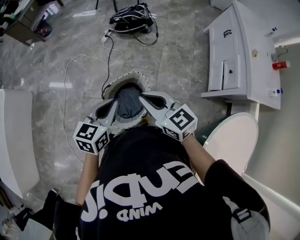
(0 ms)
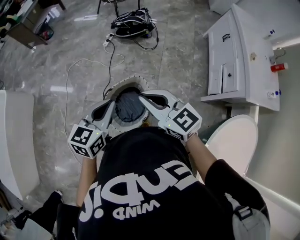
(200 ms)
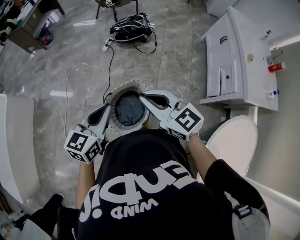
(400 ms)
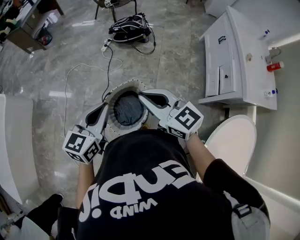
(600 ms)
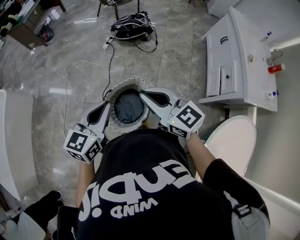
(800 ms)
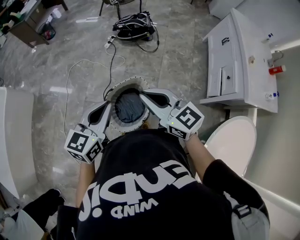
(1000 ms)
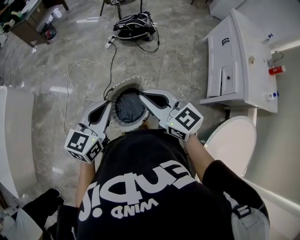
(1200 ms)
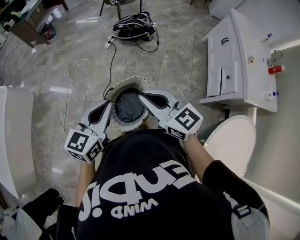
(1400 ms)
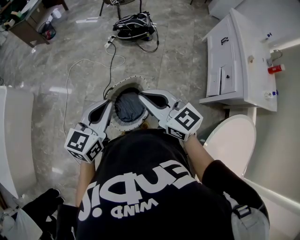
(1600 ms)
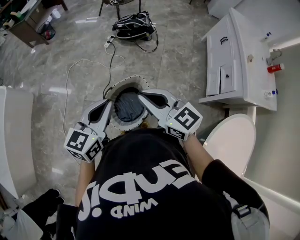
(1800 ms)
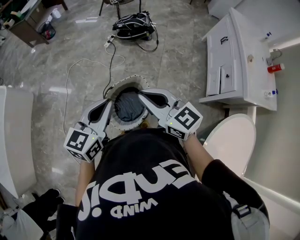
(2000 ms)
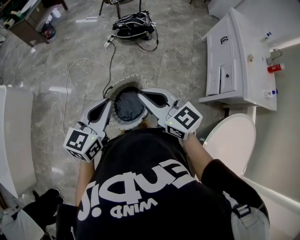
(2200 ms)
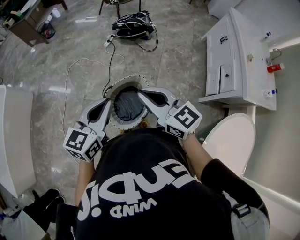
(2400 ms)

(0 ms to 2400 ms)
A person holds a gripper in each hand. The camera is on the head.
0 ms - 1200 ms: The two grippers go about 5 cm upward.
1200 ms - 2400 ms: Both grippers stay about where they are.

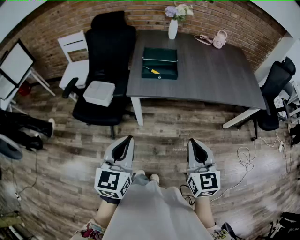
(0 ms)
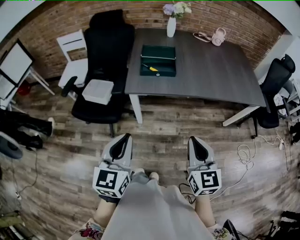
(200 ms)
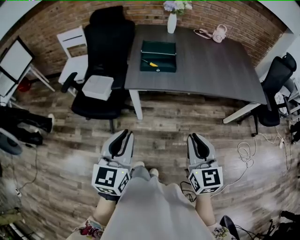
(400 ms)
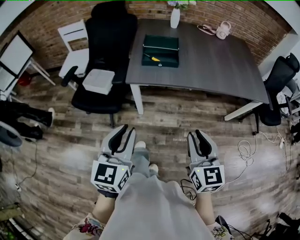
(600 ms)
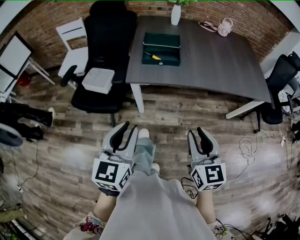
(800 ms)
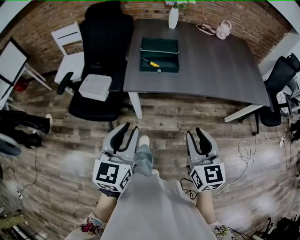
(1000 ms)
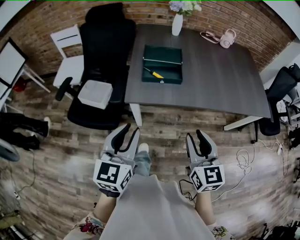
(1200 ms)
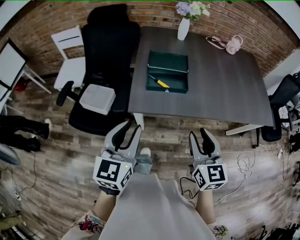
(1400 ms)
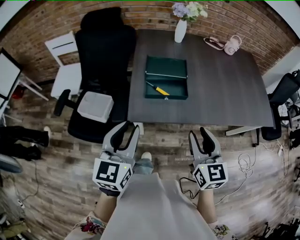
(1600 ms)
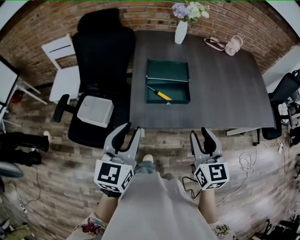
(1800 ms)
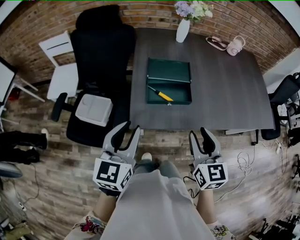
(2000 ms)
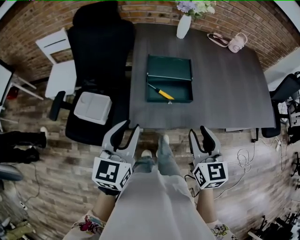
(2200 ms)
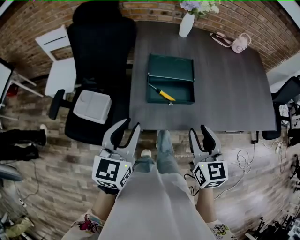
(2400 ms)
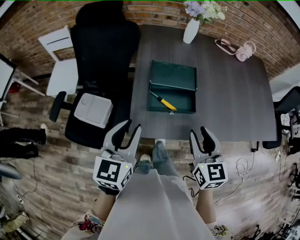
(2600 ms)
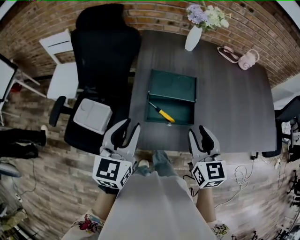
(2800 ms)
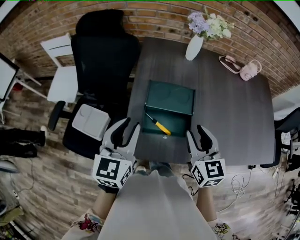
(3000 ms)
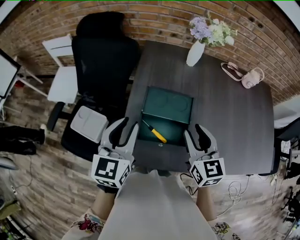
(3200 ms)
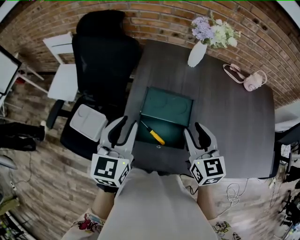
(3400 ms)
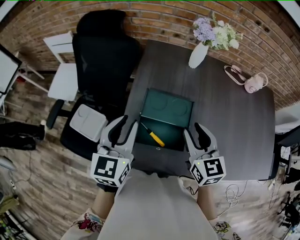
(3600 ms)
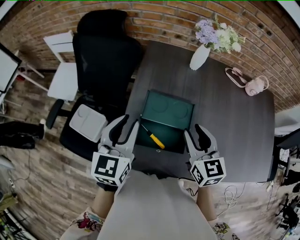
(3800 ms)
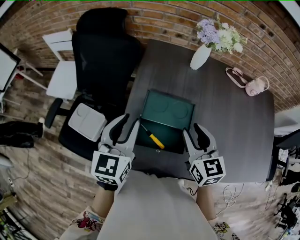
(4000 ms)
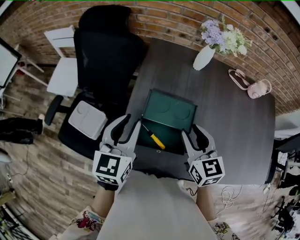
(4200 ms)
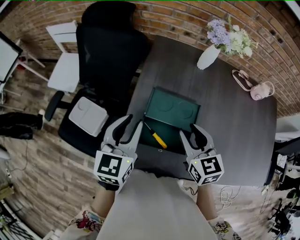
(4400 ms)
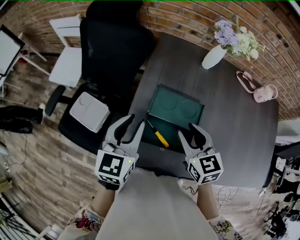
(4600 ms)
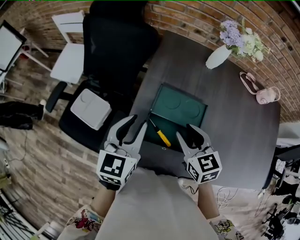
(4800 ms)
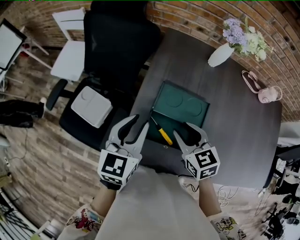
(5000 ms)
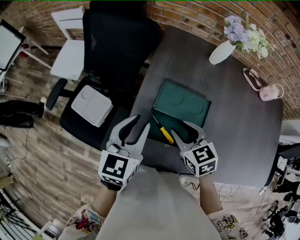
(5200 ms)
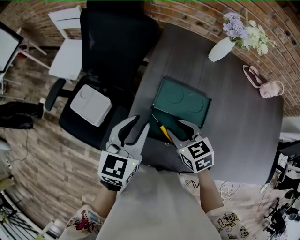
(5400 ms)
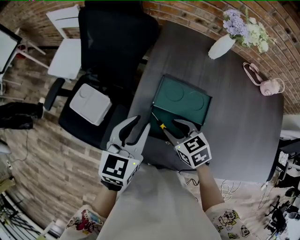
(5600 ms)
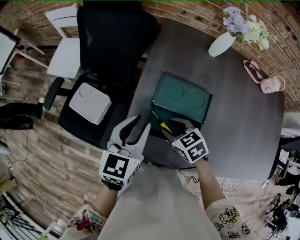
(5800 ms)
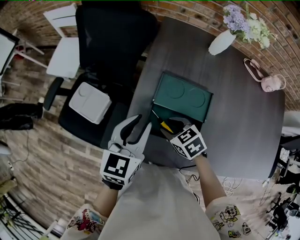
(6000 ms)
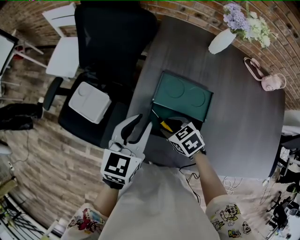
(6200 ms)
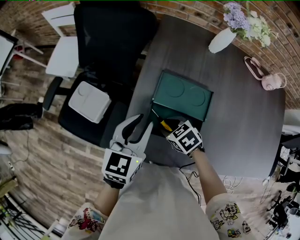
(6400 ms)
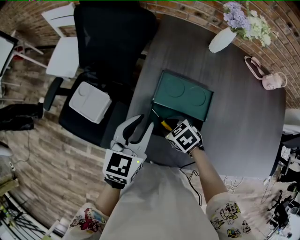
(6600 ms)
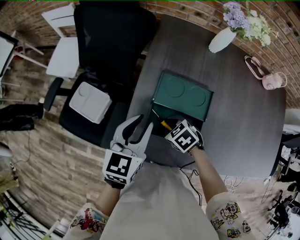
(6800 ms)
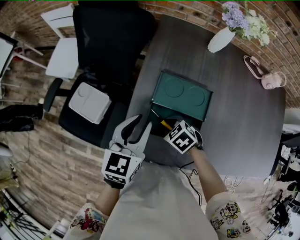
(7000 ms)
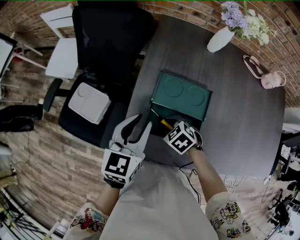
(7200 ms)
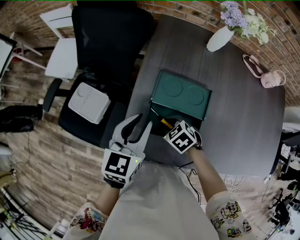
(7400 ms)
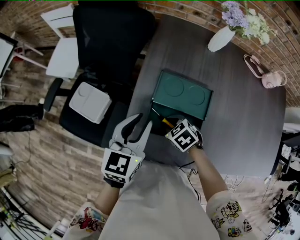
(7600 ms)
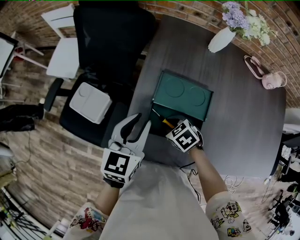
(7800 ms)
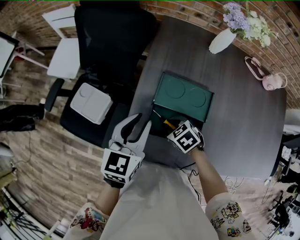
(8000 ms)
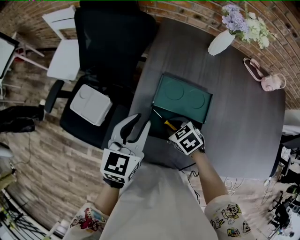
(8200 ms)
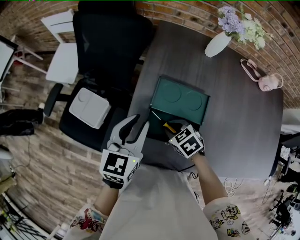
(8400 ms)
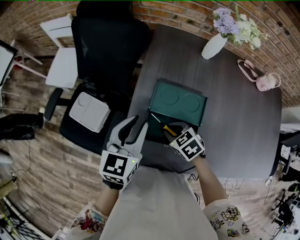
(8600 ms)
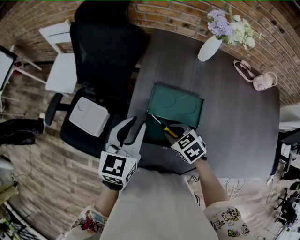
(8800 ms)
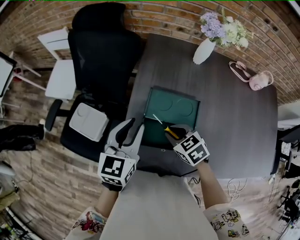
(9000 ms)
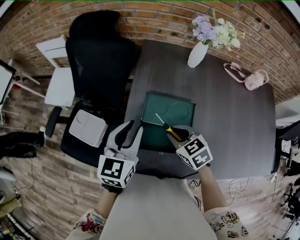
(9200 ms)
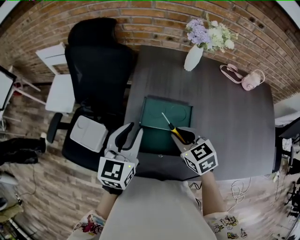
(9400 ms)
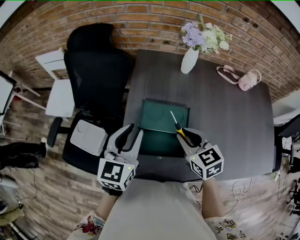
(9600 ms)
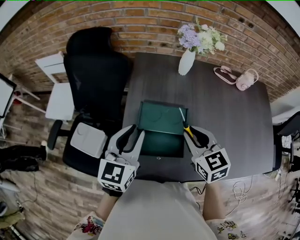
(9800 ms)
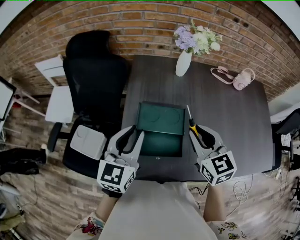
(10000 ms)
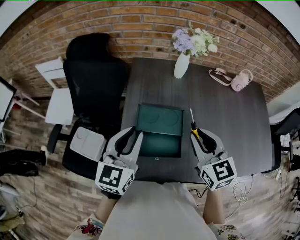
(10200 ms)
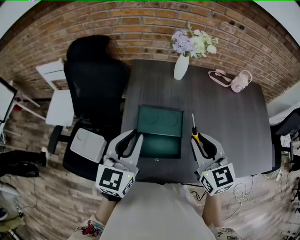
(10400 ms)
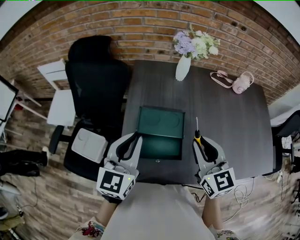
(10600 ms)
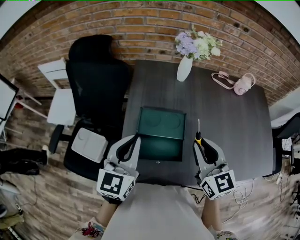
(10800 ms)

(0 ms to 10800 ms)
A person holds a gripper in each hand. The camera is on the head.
0 ms - 1600 ms: The grippers both shift forward by roughly 25 cm. The left gripper opens up. The right gripper opens.
1600 ms - 3000 ms: Both grippers travel together forward, roughly 20 cm.
3000 ms - 4600 ms: The two grippers go roughly 10 cm forward. The right gripper swivels about 20 degrees.
4600 ms - 6200 ms: The right gripper heads downward and to the left, covering approximately 20 cm, and swivels approximately 40 degrees; the left gripper changes place by approximately 5 cm.
6200 ms - 7800 ms: The right gripper closes up.
7800 ms - 9200 ms: The right gripper moves upward, about 10 cm, and rotates approximately 20 degrees; the left gripper shifts by roughly 5 cm.
9200 ms - 10800 ms: The right gripper is displaced upward and to the right by about 20 cm, and angles its fingers upward, by about 30 degrees. Meanwhile the left gripper is displaced upward by roughly 5 cm, and closes its fingers.

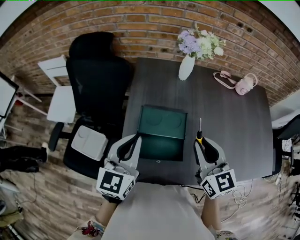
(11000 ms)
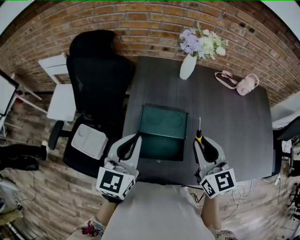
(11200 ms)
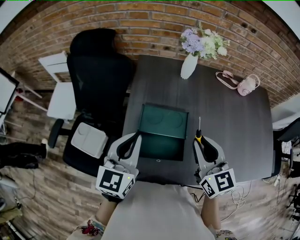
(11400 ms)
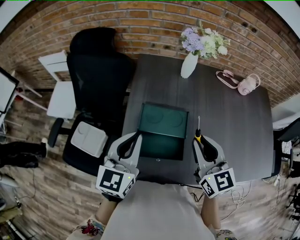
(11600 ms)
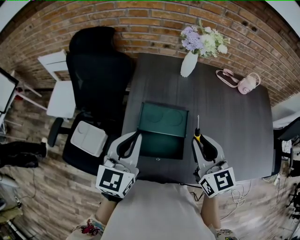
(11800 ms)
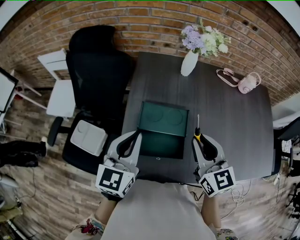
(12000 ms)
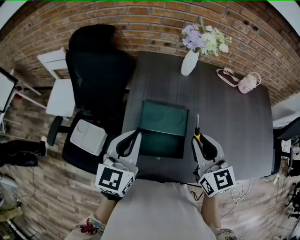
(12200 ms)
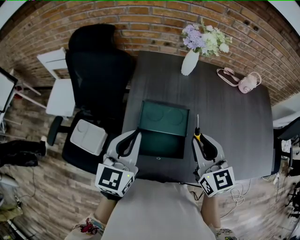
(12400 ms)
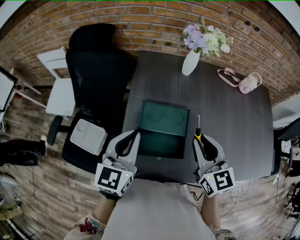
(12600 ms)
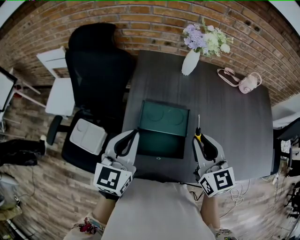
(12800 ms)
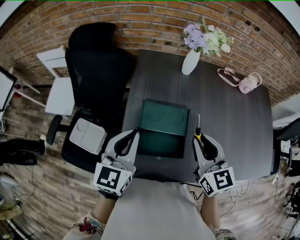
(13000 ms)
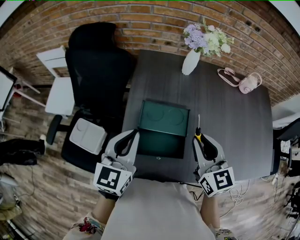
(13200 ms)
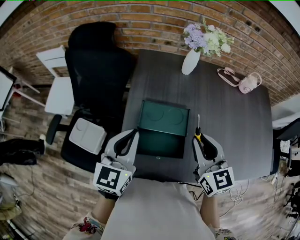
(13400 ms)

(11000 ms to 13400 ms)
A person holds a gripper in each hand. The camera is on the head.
11000 ms - 12200 ms: The grippers make only small movements.
12200 ms - 13400 ms: Both grippers stay put.

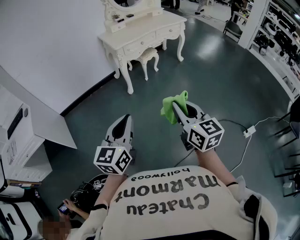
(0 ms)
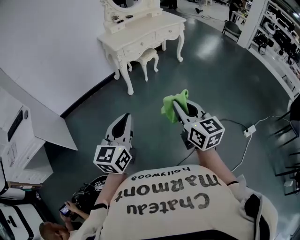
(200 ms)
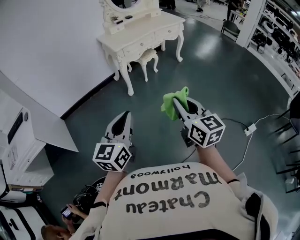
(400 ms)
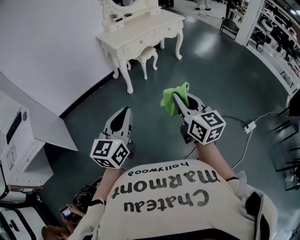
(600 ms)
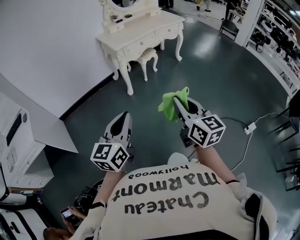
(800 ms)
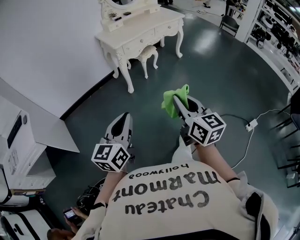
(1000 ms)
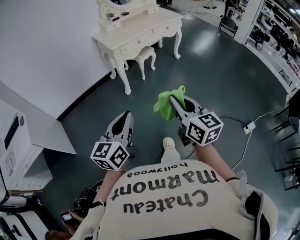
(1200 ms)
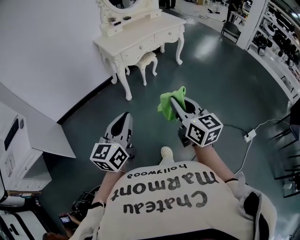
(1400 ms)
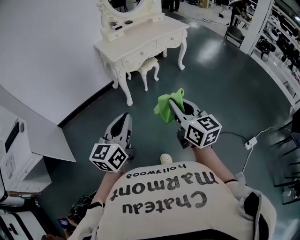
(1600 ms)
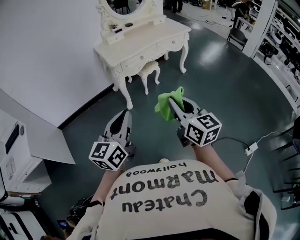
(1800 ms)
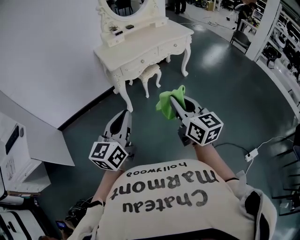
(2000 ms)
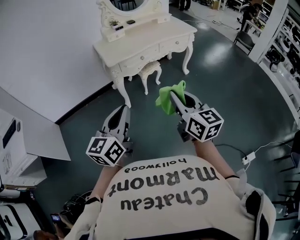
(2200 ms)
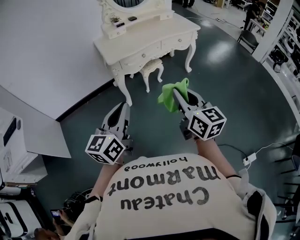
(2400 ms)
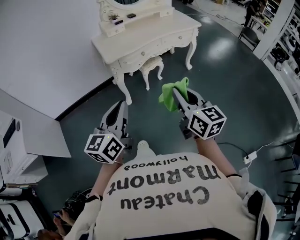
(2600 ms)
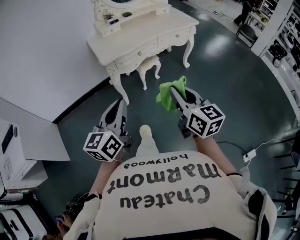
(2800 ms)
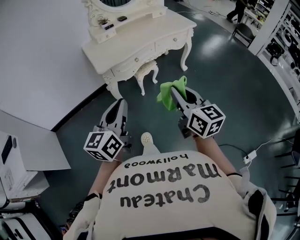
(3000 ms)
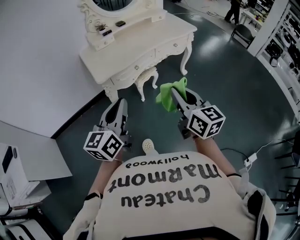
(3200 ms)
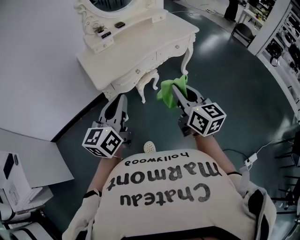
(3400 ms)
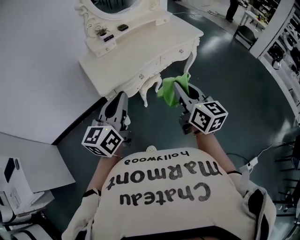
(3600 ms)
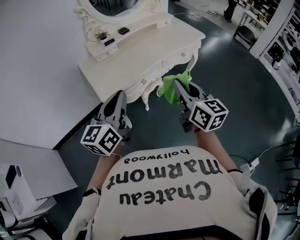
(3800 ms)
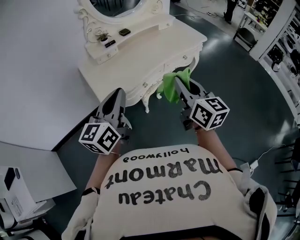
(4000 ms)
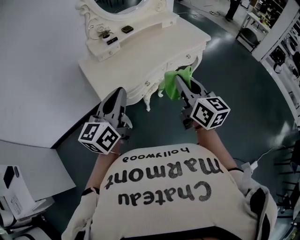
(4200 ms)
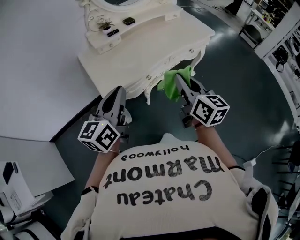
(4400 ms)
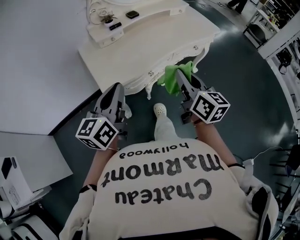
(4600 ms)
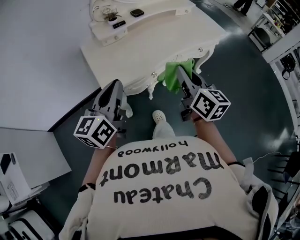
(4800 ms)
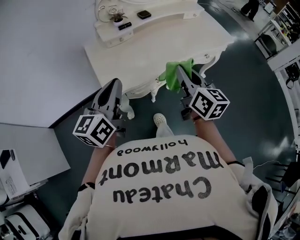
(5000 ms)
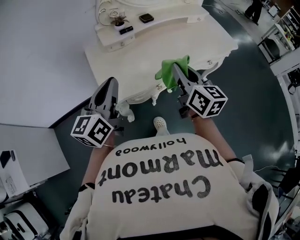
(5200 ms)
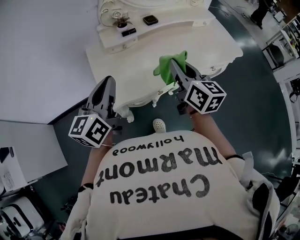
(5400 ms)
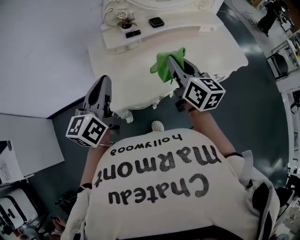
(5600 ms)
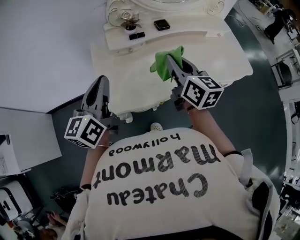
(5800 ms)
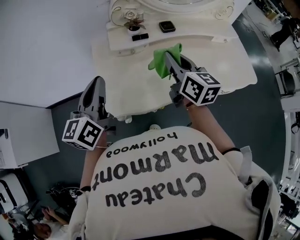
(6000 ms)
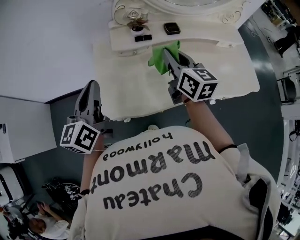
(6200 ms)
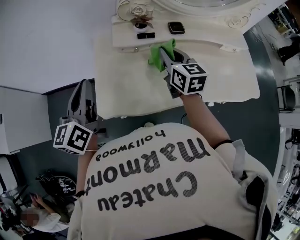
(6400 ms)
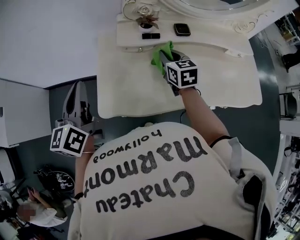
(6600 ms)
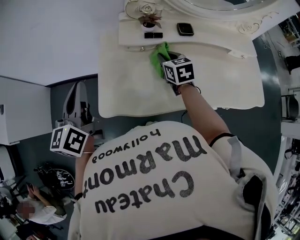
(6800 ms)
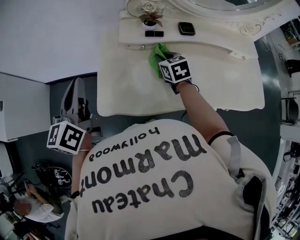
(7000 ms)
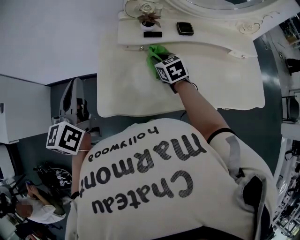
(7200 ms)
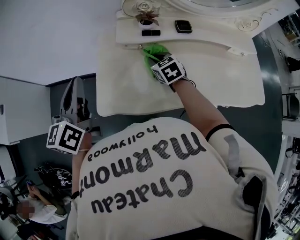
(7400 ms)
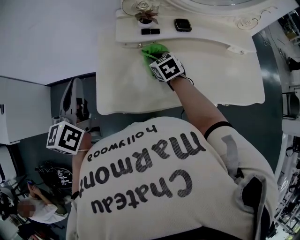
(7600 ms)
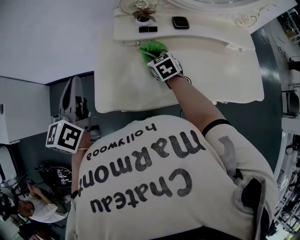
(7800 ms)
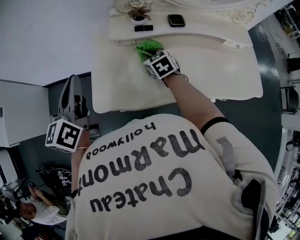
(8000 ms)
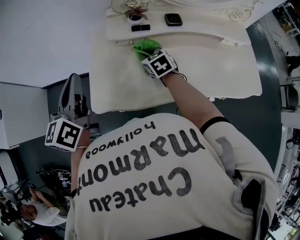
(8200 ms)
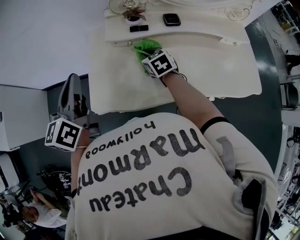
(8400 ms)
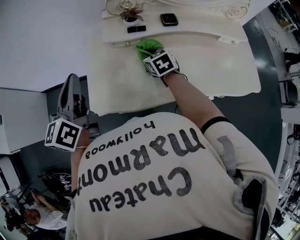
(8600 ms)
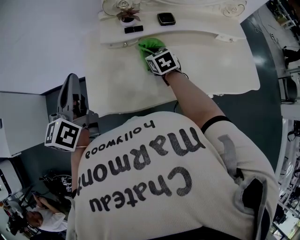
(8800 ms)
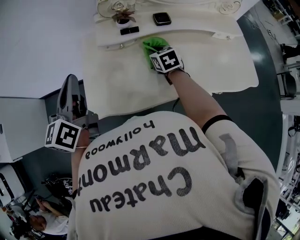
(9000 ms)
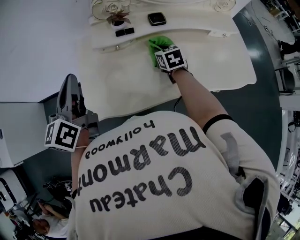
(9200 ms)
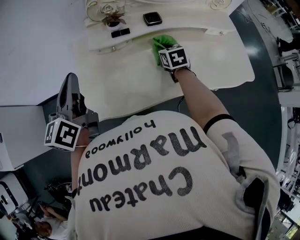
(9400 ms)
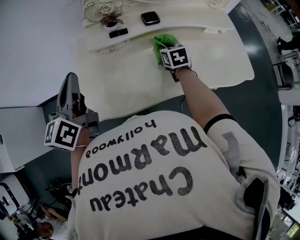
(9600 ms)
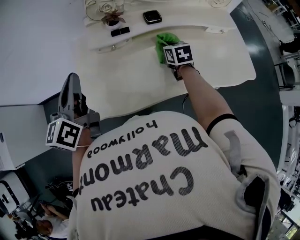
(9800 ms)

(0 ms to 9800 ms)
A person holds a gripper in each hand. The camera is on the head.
0 ms - 1400 ms: Both grippers move forward, about 10 cm.
1400 ms - 2800 ms: The grippers both shift forward by some 25 cm.
2800 ms - 4200 ms: The two grippers go approximately 30 cm forward.
4200 ms - 5600 ms: The left gripper goes about 20 cm forward and to the left, and changes its angle by about 20 degrees; the right gripper is displaced forward by some 25 cm.
5600 ms - 7000 ms: The left gripper ends up roughly 10 cm from where it was, and changes its angle by roughly 30 degrees, while the right gripper goes about 20 cm downward, and tilts its fingers roughly 30 degrees downward.
7000 ms - 8400 ms: There are only small adjustments of the grippers.
8400 ms - 9800 ms: The left gripper moves to the right, approximately 5 cm. The right gripper goes about 15 cm to the right, and swivels some 20 degrees.
